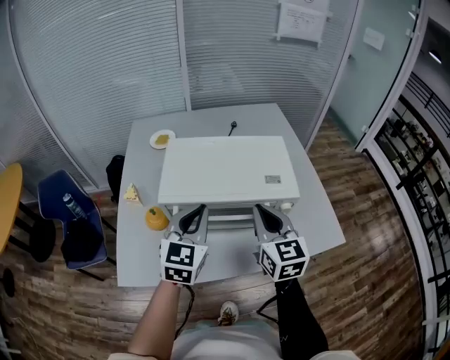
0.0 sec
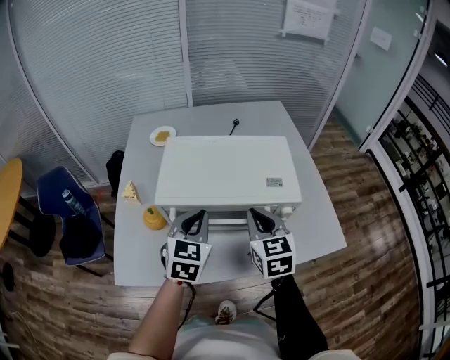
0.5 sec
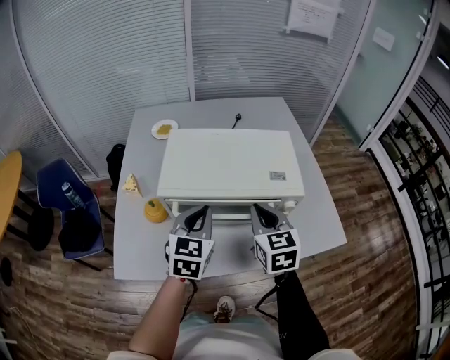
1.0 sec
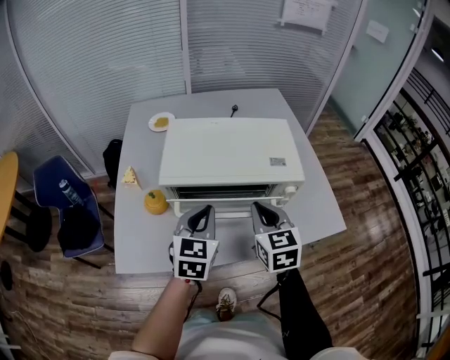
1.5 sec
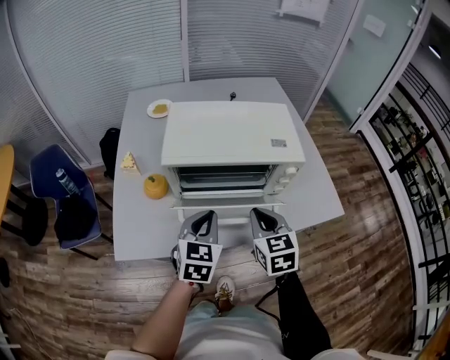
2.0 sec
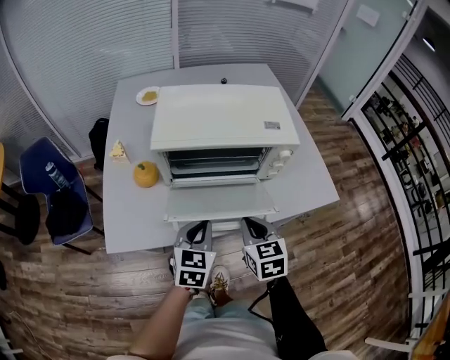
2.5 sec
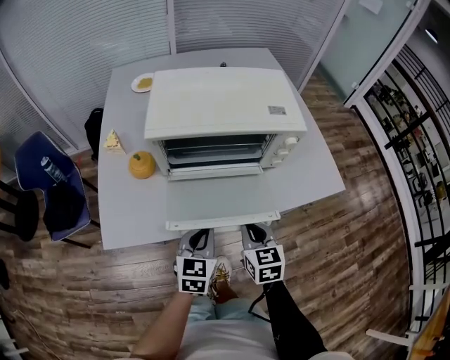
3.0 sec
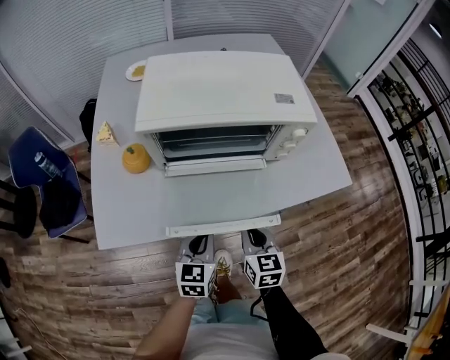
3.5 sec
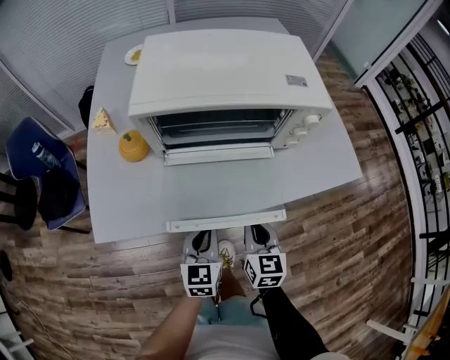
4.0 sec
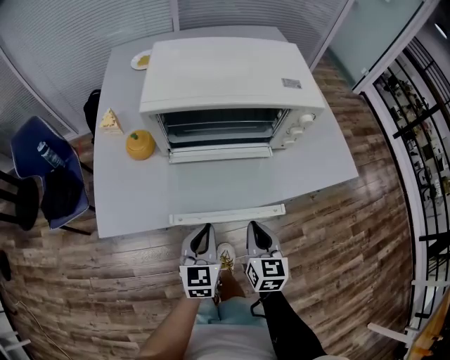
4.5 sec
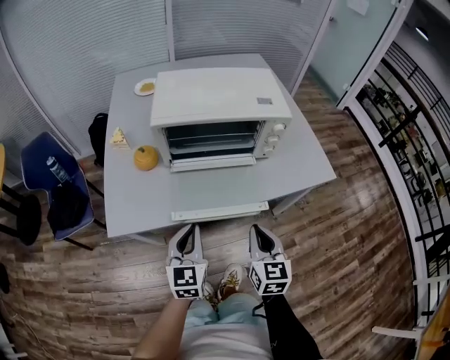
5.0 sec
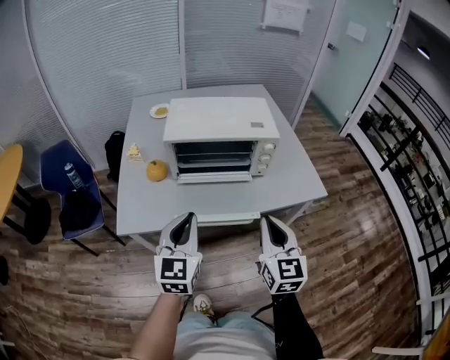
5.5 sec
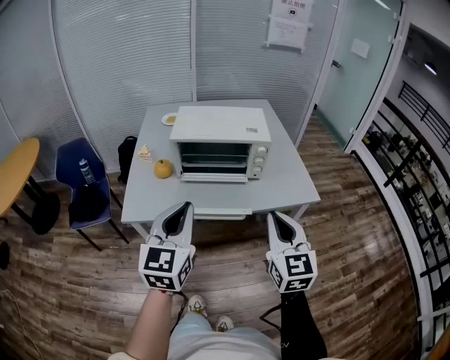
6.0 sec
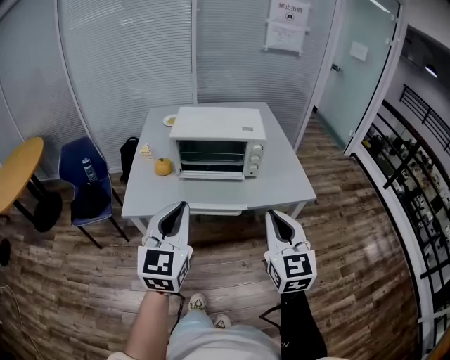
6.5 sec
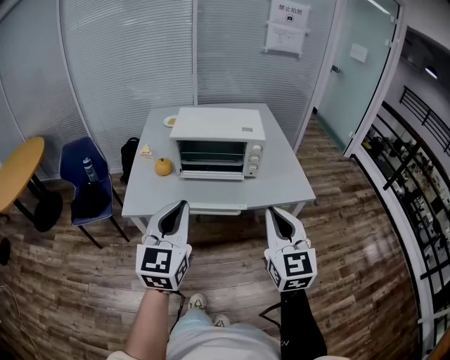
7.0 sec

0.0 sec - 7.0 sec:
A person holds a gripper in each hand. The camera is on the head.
0.0 sec - 2.0 sec: The two grippers go some 15 cm downward and backward.
2.0 sec - 3.5 sec: The grippers both shift downward and backward by approximately 20 cm.
3.5 sec - 5.0 sec: The two grippers go some 10 cm upward and backward.
5.0 sec - 7.0 sec: The grippers both shift upward and backward by approximately 30 cm. The right gripper turns by about 30 degrees.

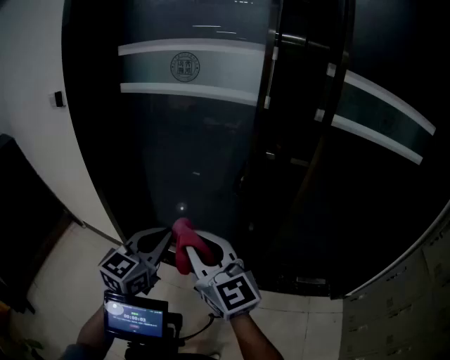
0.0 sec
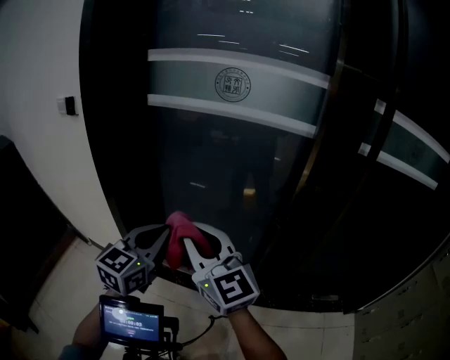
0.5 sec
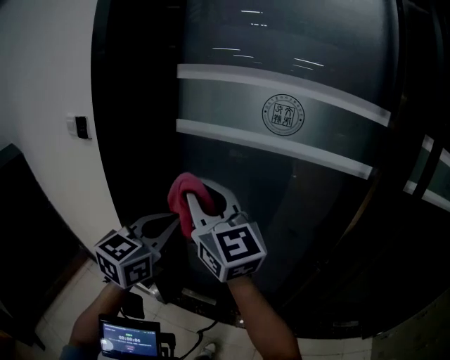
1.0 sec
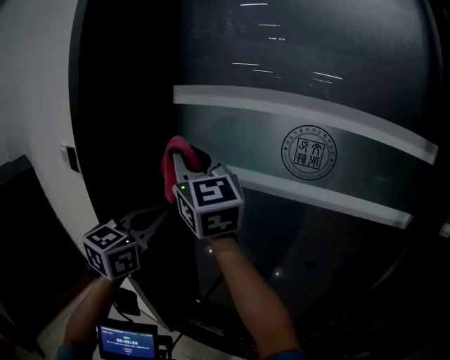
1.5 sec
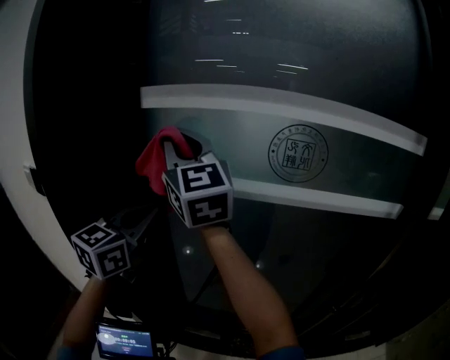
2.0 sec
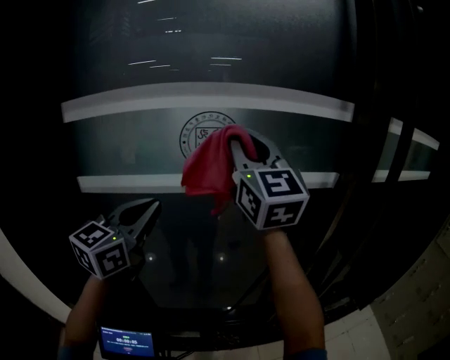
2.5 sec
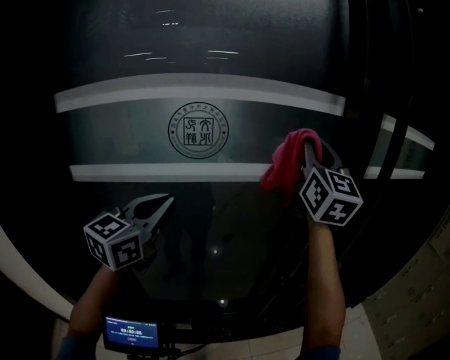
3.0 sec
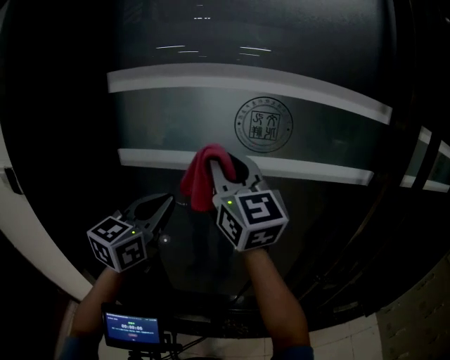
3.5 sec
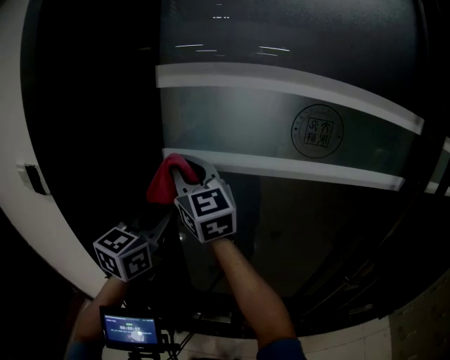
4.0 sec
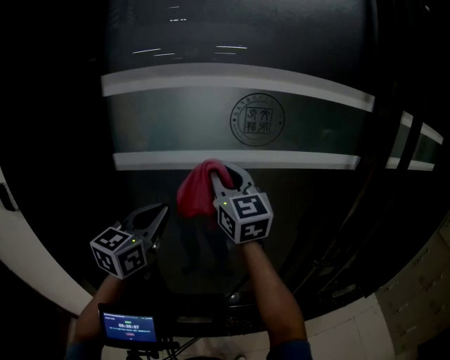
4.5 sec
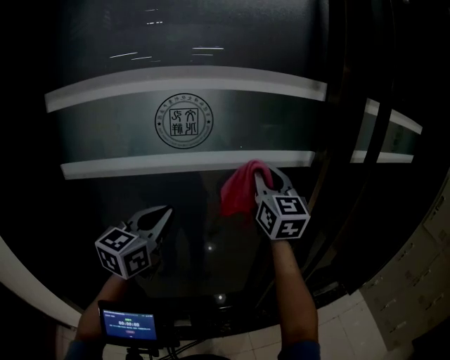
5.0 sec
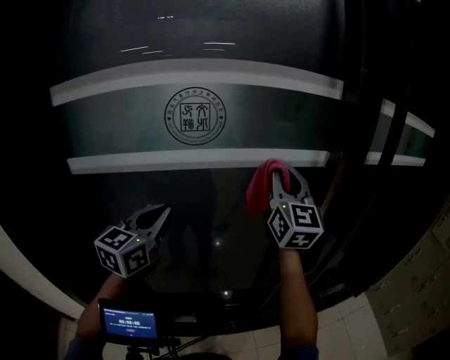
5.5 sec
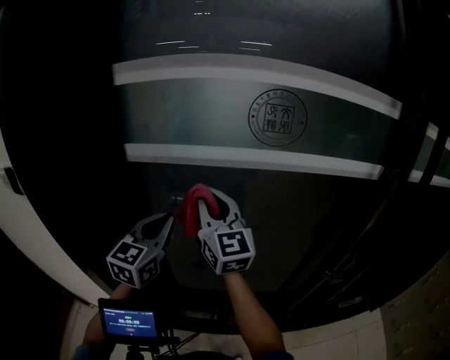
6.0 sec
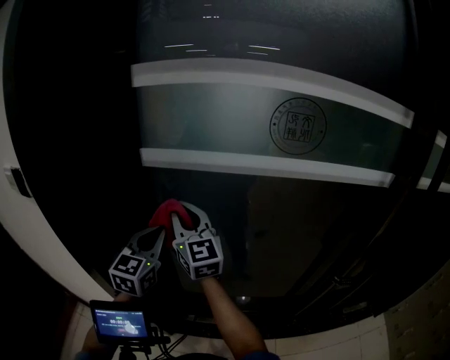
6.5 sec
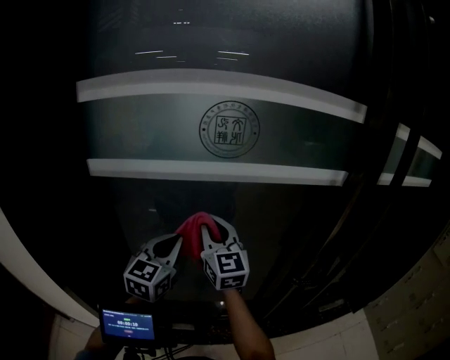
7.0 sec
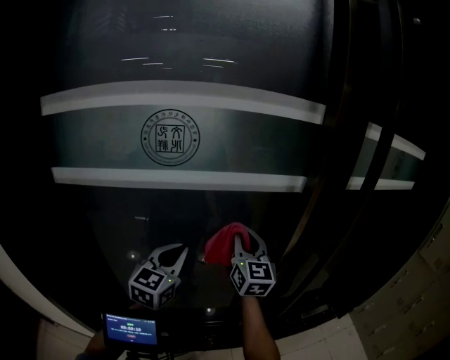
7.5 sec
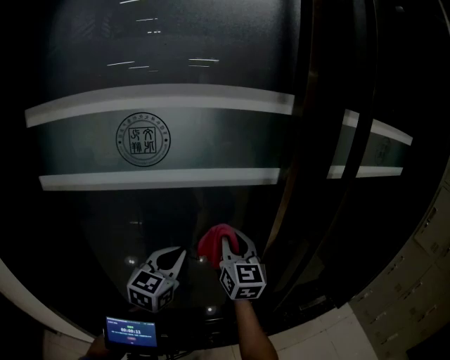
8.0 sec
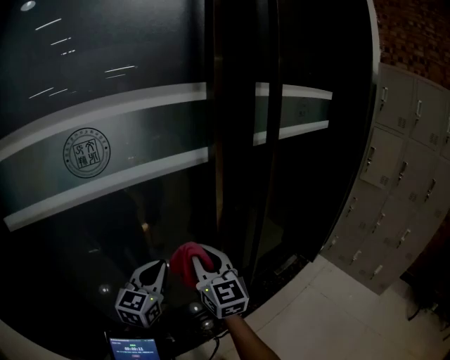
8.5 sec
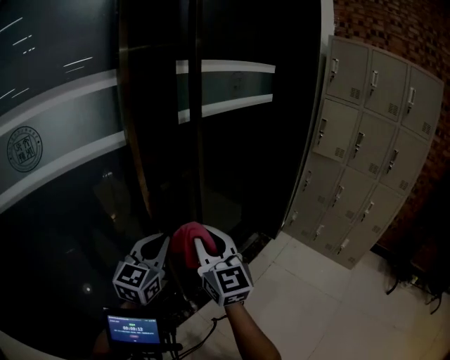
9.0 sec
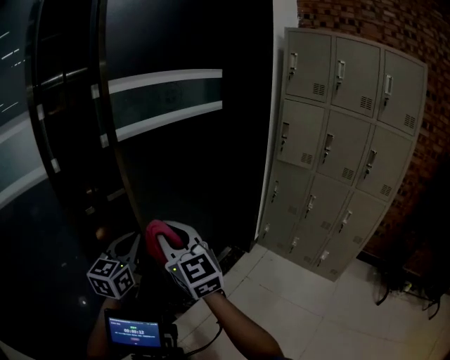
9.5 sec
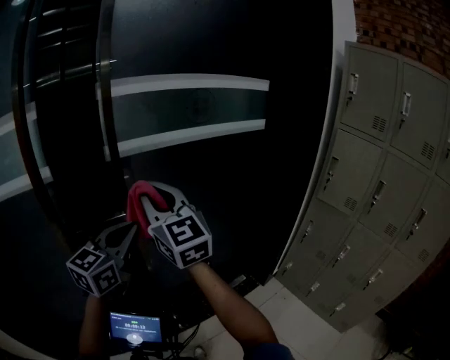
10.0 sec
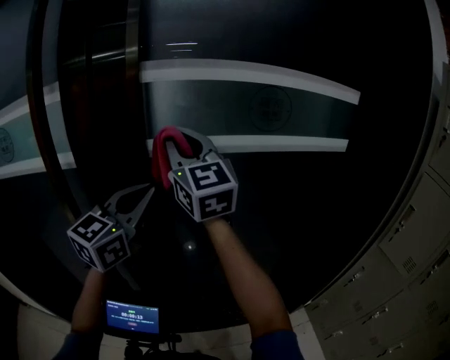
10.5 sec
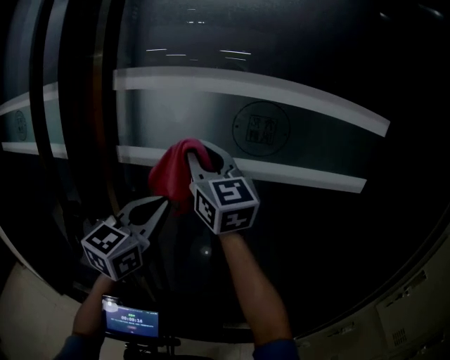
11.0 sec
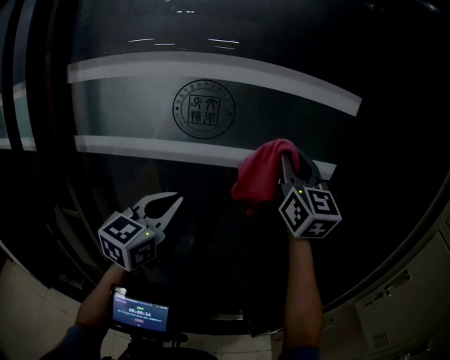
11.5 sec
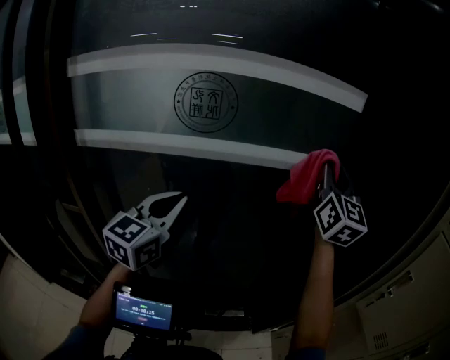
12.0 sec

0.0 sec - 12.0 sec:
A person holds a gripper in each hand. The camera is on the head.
0.0 sec - 2.0 sec: The two grippers travel together, forward and to the left, roughly 70 cm. The right gripper heads upward, covering approximately 25 cm.
2.0 sec - 4.0 sec: The left gripper moves downward, about 5 cm. Meanwhile the right gripper travels downward by some 10 cm.
6.0 sec - 8.0 sec: The right gripper shifts by roughly 35 cm, and swivels approximately 20 degrees. The left gripper shifts by some 30 cm.
8.0 sec - 10.0 sec: The two grippers travel together, about 50 cm. The left gripper turns by some 20 degrees.
10.0 sec - 12.0 sec: The right gripper moves about 60 cm. Meanwhile the left gripper changes place by roughly 35 cm, and swivels approximately 30 degrees.

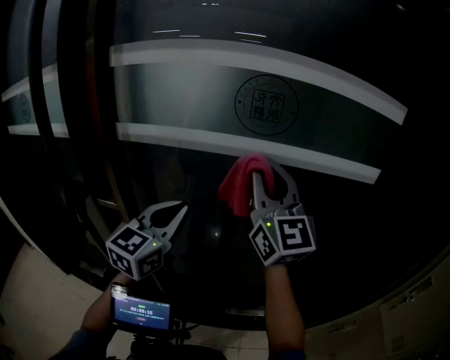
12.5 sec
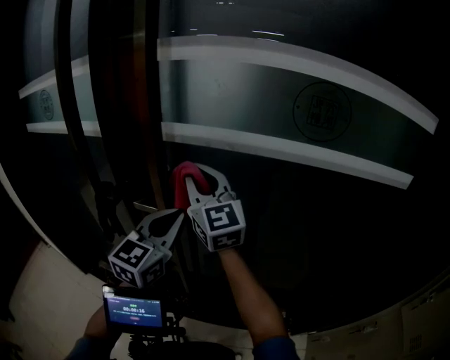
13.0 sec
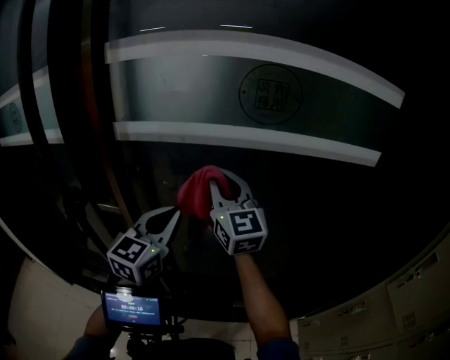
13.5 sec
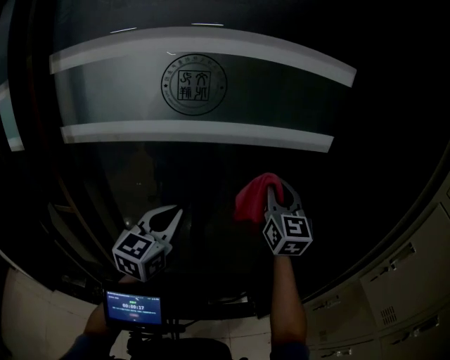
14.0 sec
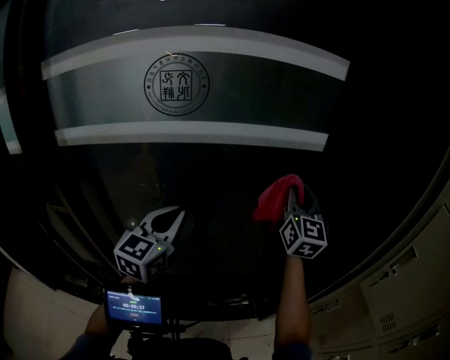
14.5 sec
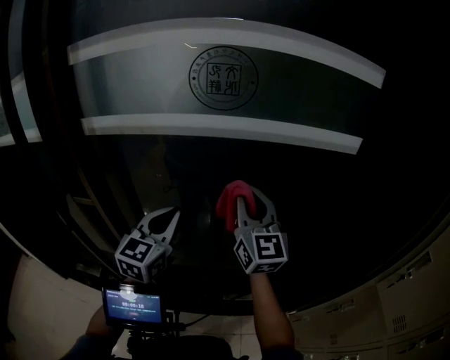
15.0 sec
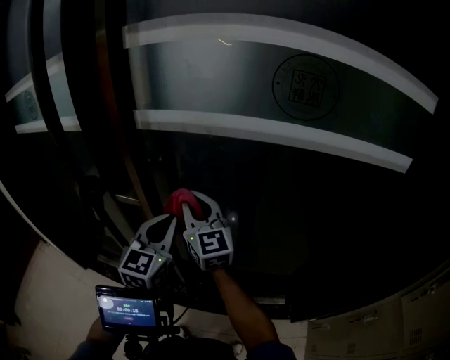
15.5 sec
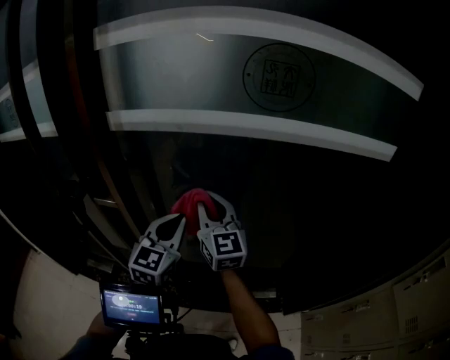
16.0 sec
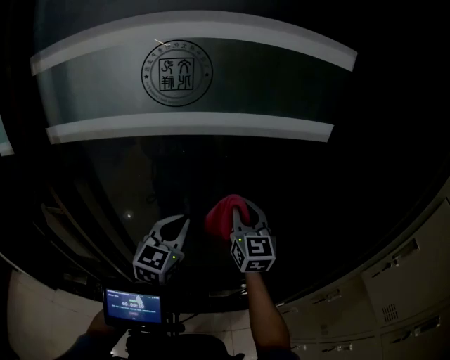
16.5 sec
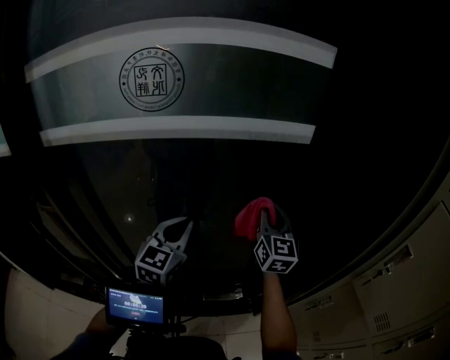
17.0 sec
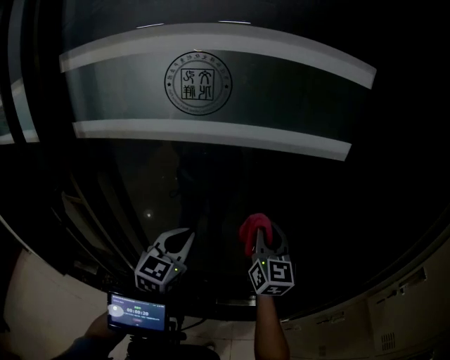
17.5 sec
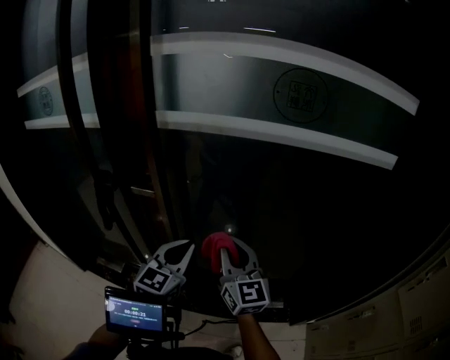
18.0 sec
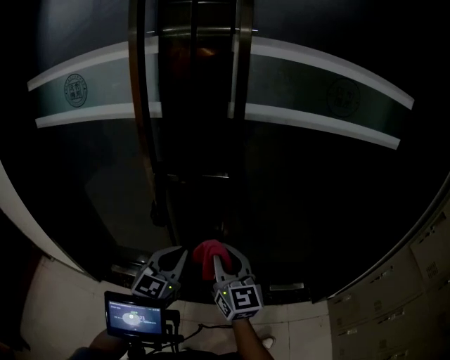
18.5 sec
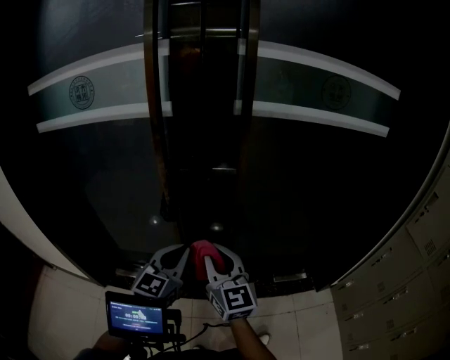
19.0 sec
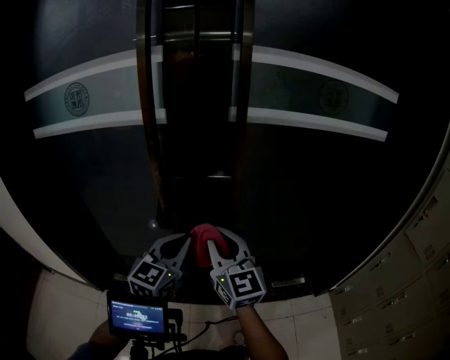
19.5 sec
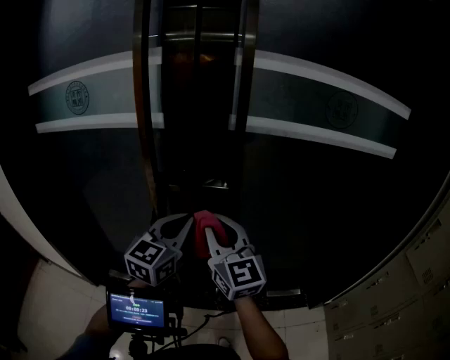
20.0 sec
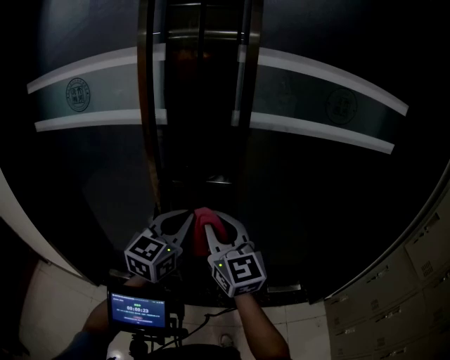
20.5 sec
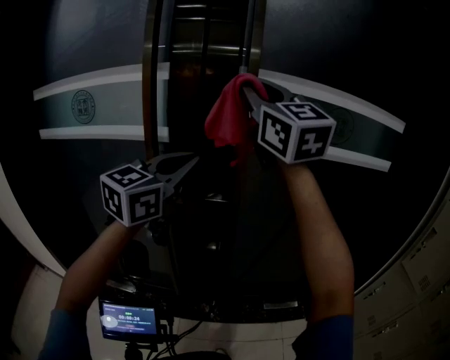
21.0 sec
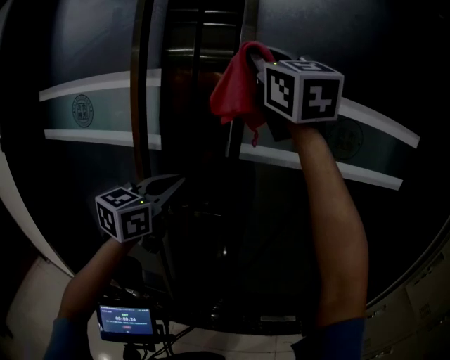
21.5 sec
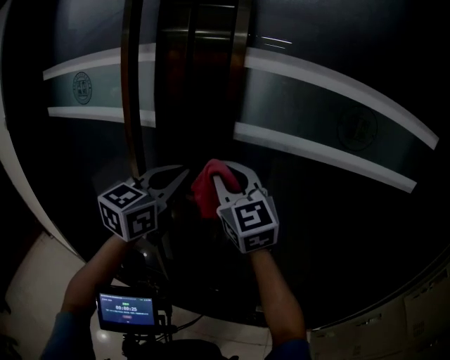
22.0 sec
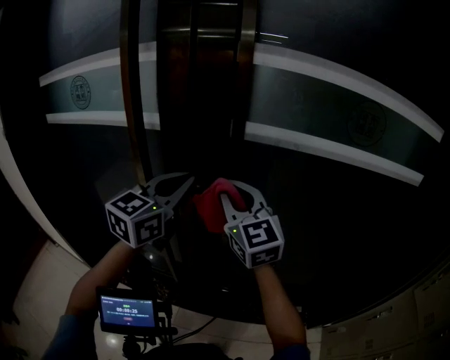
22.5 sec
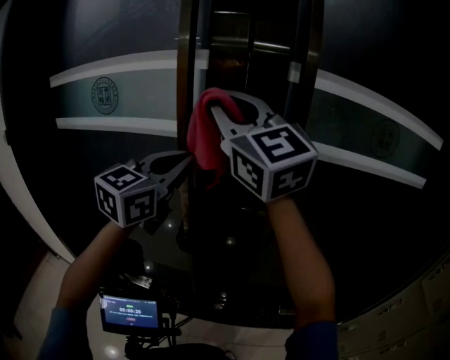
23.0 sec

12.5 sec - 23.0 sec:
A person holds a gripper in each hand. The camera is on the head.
12.5 sec - 14.5 sec: The right gripper shifts by approximately 35 cm, and swivels roughly 30 degrees. Meanwhile the left gripper ends up approximately 15 cm from where it was.
14.5 sec - 16.5 sec: The left gripper is displaced downward by roughly 5 cm.
16.5 sec - 19.0 sec: The two grippers travel together, to the left and backward, roughly 60 cm.
19.0 sec - 21.0 sec: The right gripper goes approximately 40 cm upward, and rotates about 20 degrees. Meanwhile the left gripper shifts about 30 cm upward and forward.
21.0 sec - 23.0 sec: The right gripper moves up and down over roughly 35 cm, changing direction 2 times; the left gripper travels to the left and forward by about 10 cm.
